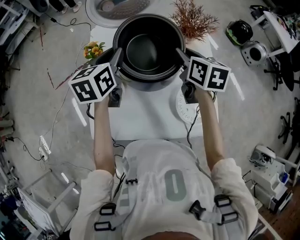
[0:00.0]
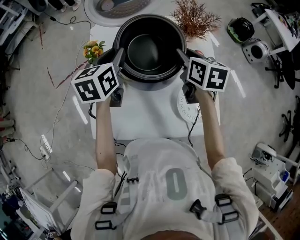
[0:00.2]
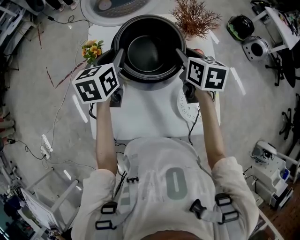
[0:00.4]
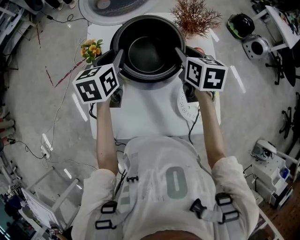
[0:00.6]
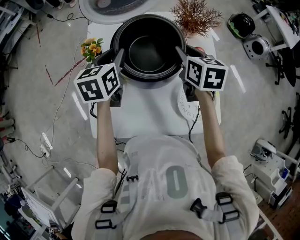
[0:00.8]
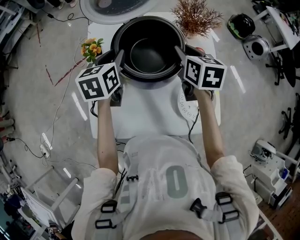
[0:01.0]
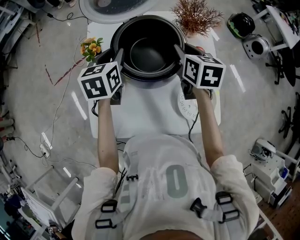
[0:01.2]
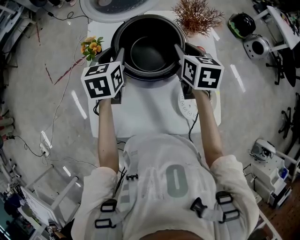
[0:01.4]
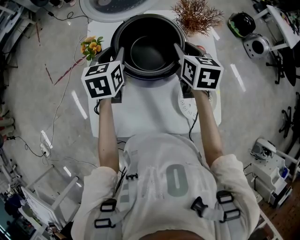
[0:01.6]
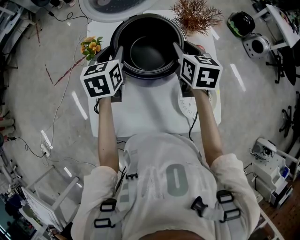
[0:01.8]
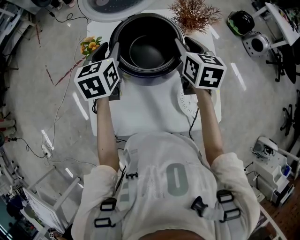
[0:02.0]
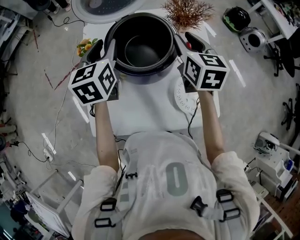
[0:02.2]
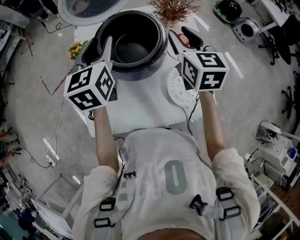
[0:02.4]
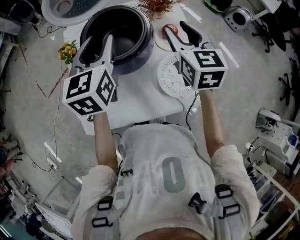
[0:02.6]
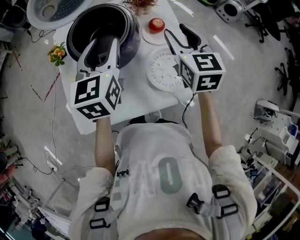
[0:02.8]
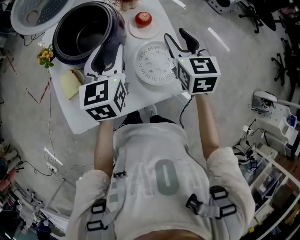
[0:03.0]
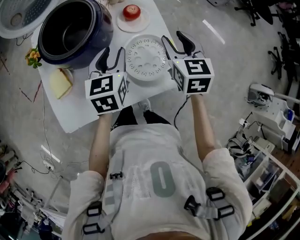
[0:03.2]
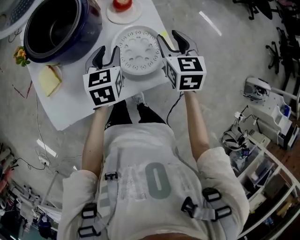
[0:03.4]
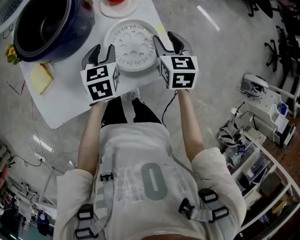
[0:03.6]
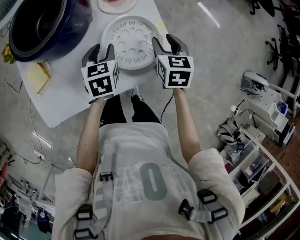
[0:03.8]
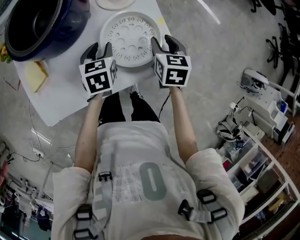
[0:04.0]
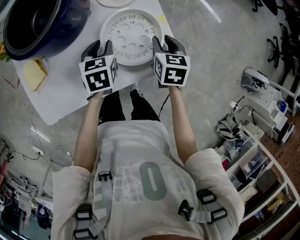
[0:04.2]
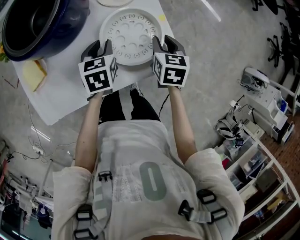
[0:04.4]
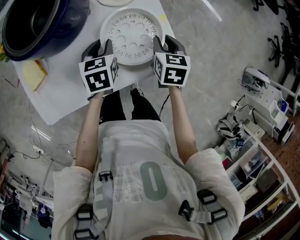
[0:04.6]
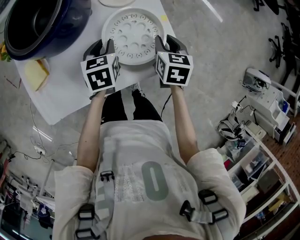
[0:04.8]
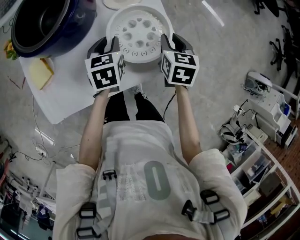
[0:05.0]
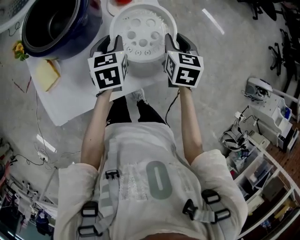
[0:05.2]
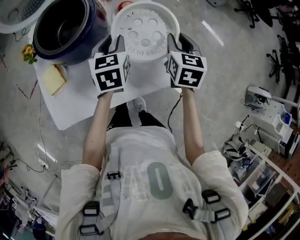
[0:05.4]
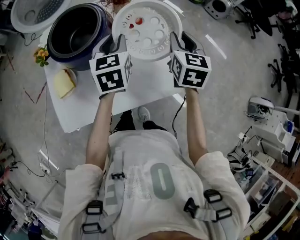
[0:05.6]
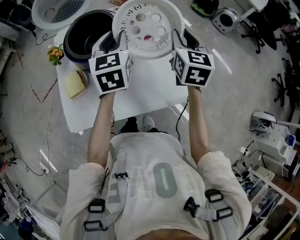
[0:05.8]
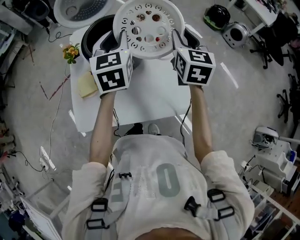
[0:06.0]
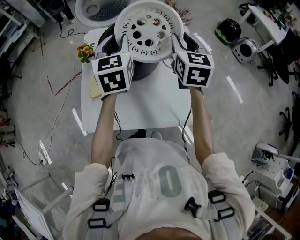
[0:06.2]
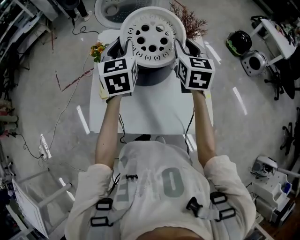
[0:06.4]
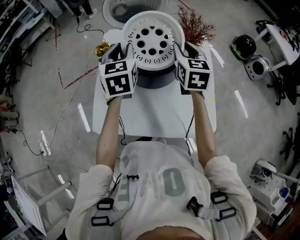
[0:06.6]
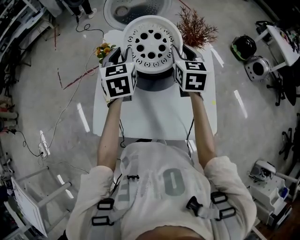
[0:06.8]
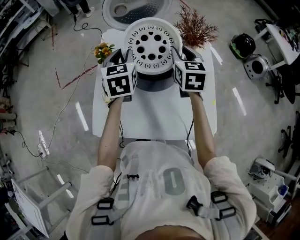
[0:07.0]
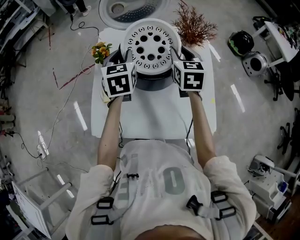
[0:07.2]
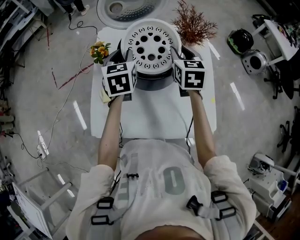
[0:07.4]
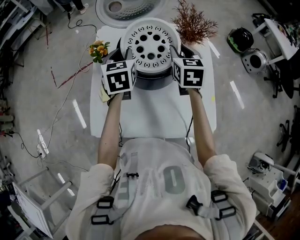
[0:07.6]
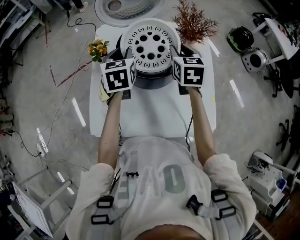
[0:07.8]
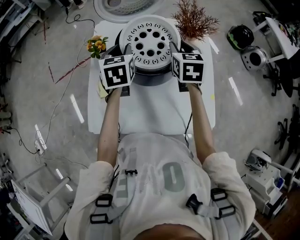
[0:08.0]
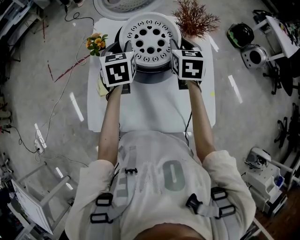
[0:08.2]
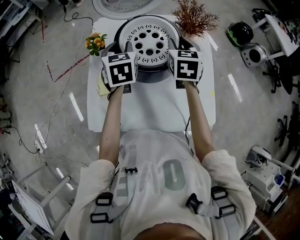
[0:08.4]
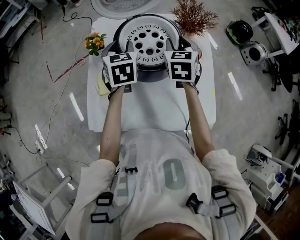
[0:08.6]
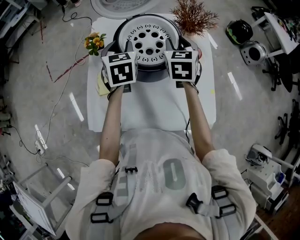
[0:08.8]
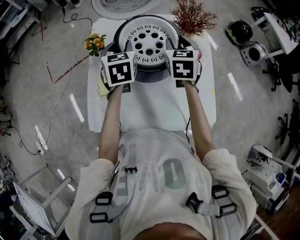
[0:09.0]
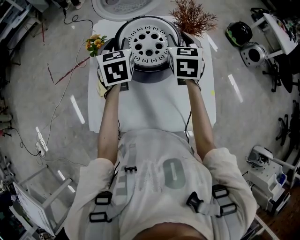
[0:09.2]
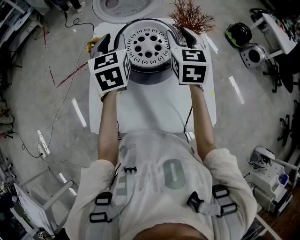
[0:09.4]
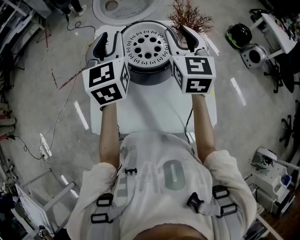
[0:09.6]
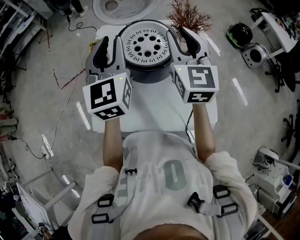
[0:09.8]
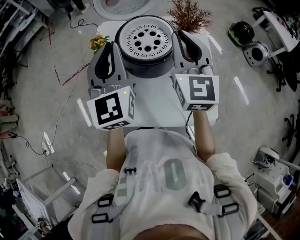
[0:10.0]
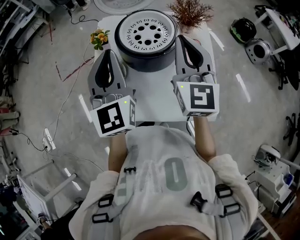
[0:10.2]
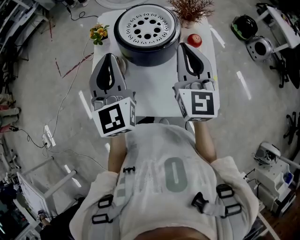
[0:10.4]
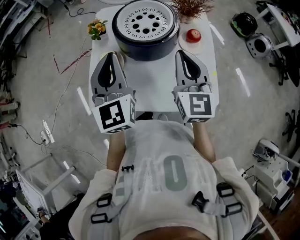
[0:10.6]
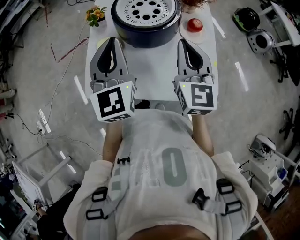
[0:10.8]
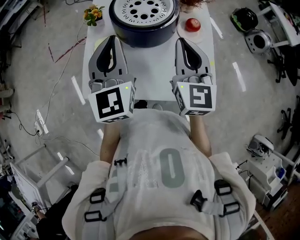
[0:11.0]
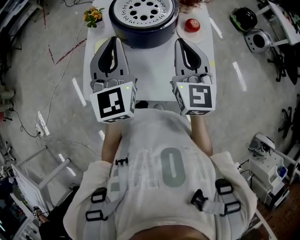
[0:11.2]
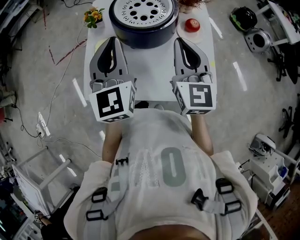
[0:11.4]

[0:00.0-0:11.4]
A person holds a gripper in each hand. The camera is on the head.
0:00.0 to 0:01.4: The left gripper goes roughly 5 cm downward.
0:01.4 to 0:02.8: Both grippers travel together to the right, backward and upward, roughly 20 cm.
0:02.8 to 0:04.2: The grippers both shift downward and to the right by roughly 30 cm. The right gripper rotates approximately 30 degrees. Meanwhile the left gripper tips its fingers downward by about 30 degrees.
0:04.2 to 0:05.6: Both grippers move upward, roughly 20 cm. The right gripper turns by some 20 degrees, while the left gripper swivels some 20 degrees.
0:05.6 to 0:07.2: The left gripper is displaced to the left by some 25 cm, while the right gripper is displaced to the left and forward by about 30 cm, and rotates roughly 20 degrees.
0:07.2 to 0:08.6: The grippers stay close to where they were, moving slightly.
0:08.6 to 0:10.0: The two grippers go some 20 cm upward and backward. The right gripper tips its fingers upward by about 30 degrees, and closes, while the left gripper points its fingers roughly 40 degrees further upward.
0:10.0 to 0:11.4: The grippers both shift backward and downward by approximately 10 cm.

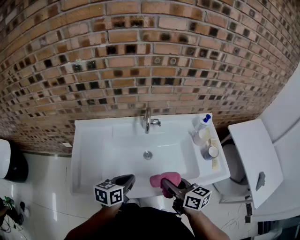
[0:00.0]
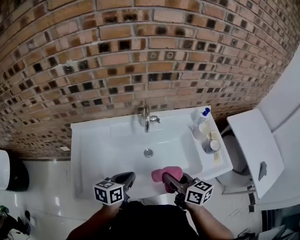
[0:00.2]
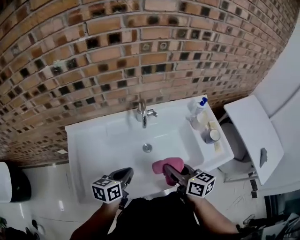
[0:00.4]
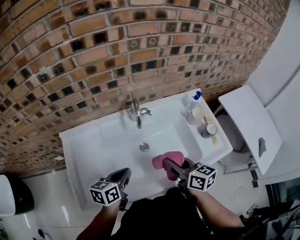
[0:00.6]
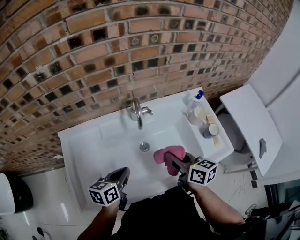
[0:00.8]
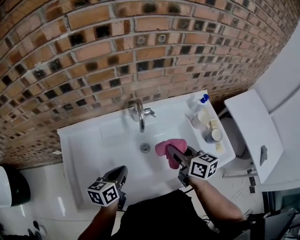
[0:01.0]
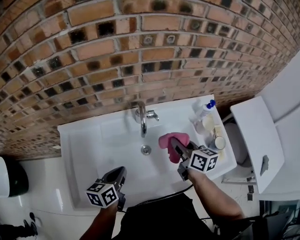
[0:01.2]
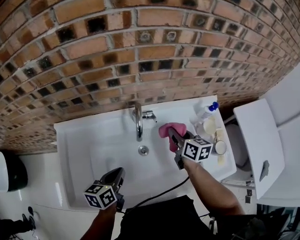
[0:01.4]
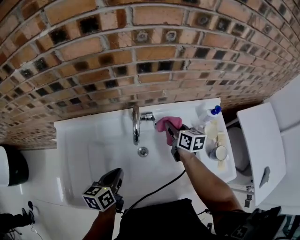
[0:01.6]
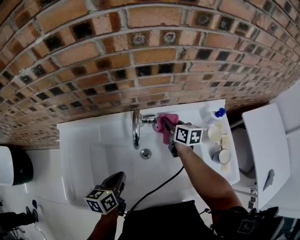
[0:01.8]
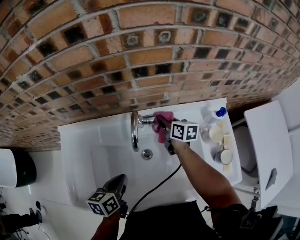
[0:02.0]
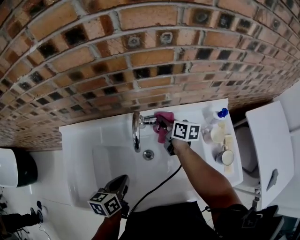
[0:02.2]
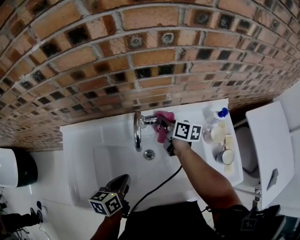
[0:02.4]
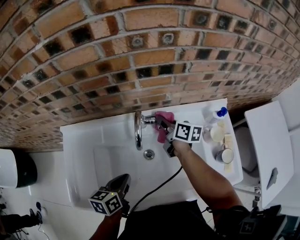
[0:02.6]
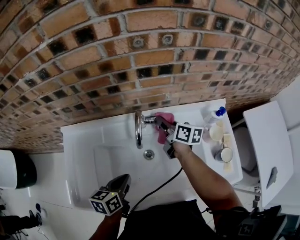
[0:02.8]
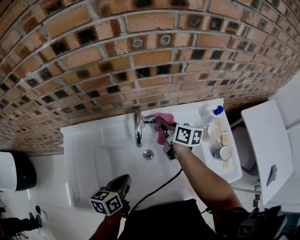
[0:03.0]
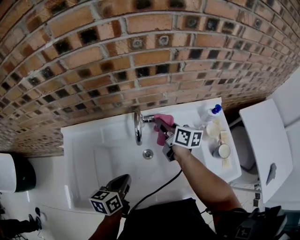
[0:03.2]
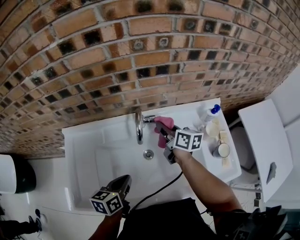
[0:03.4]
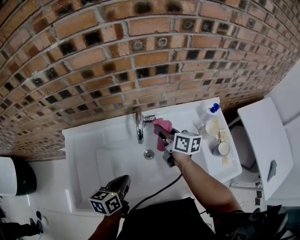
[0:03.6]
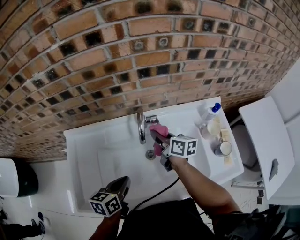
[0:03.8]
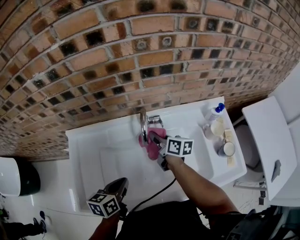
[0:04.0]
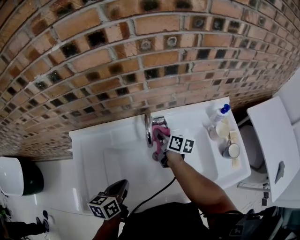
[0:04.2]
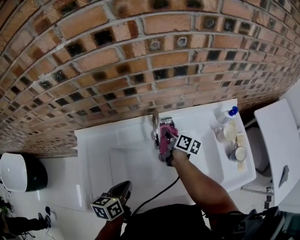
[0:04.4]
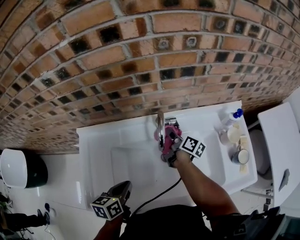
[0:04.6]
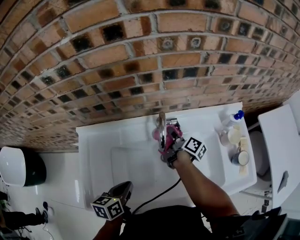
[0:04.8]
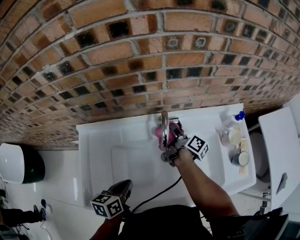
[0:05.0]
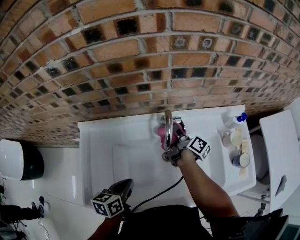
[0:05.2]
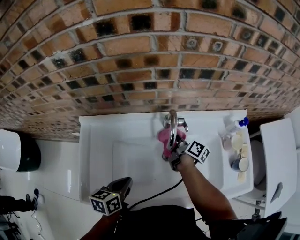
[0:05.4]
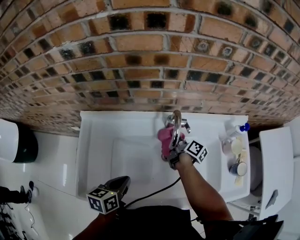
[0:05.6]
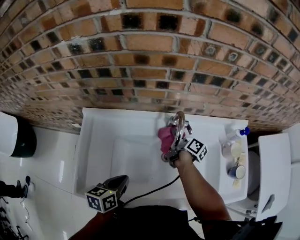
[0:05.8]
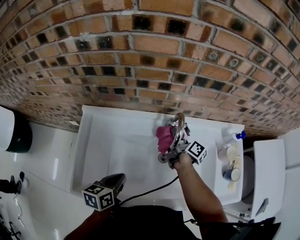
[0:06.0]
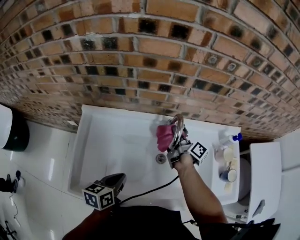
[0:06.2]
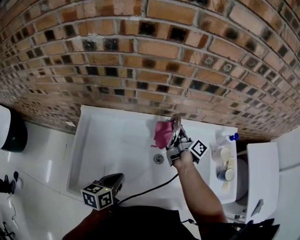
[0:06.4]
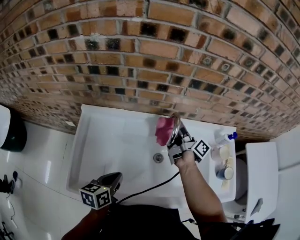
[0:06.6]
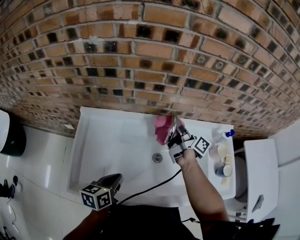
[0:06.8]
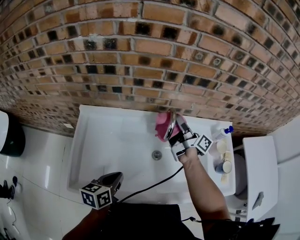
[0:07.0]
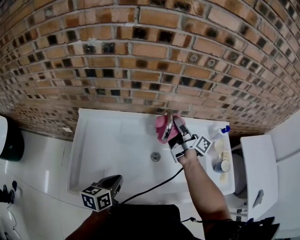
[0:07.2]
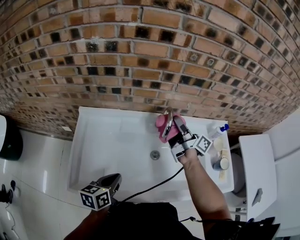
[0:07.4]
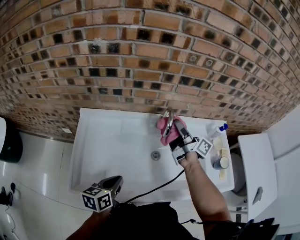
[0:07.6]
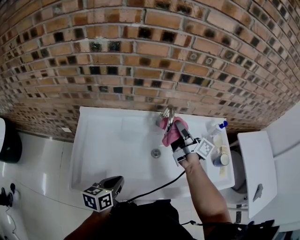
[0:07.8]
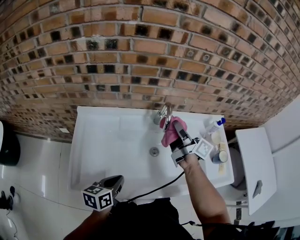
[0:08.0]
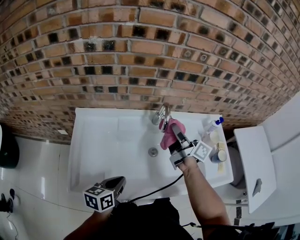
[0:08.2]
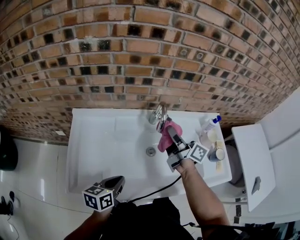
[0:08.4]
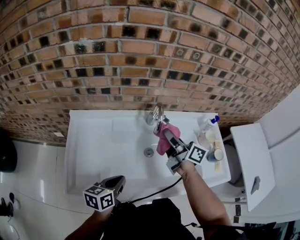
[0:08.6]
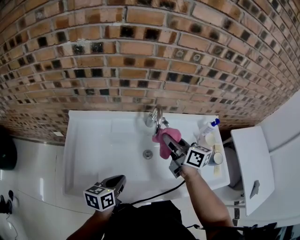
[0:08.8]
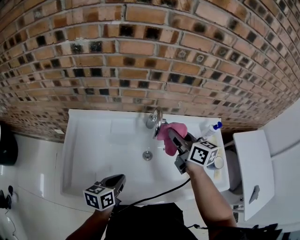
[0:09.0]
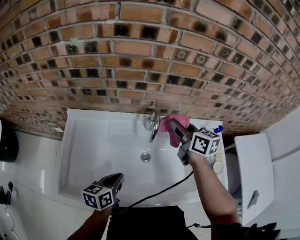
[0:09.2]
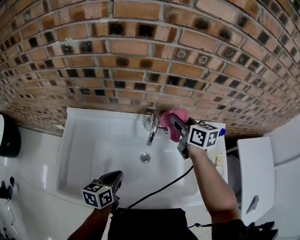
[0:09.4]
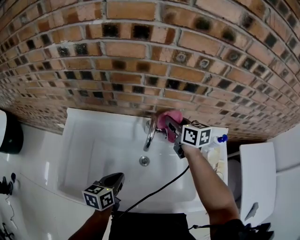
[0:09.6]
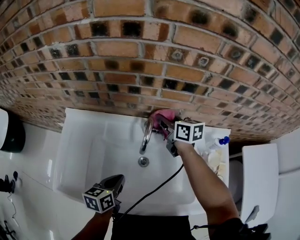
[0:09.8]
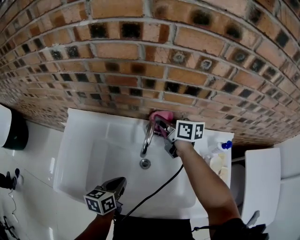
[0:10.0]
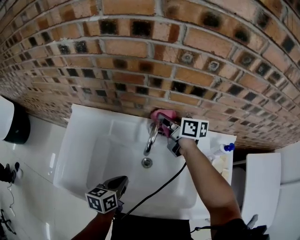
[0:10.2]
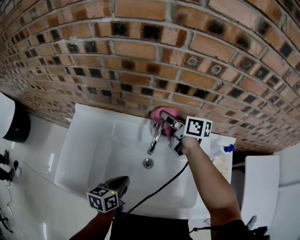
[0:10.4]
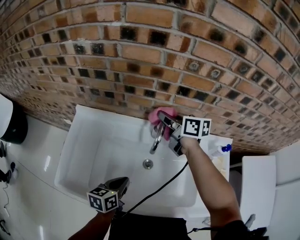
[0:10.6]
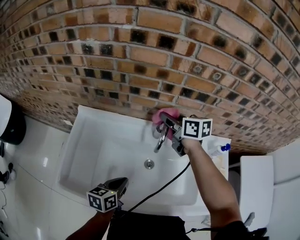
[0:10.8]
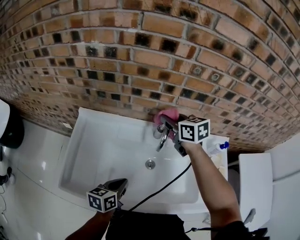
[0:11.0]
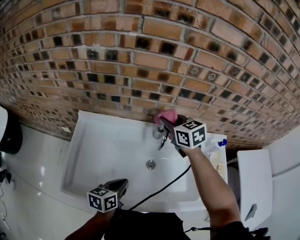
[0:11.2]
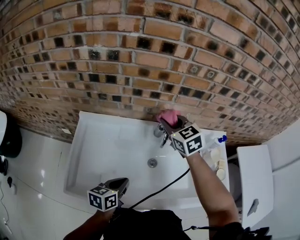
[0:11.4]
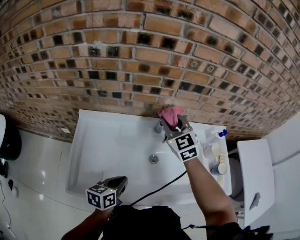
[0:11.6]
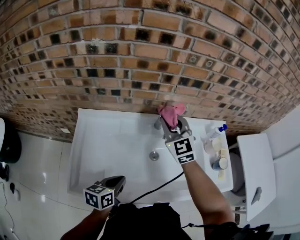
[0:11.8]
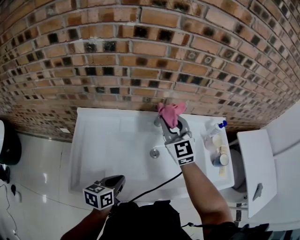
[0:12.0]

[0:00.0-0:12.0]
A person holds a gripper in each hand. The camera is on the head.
0:00.0 to 0:01.6: The right gripper is displaced forward by approximately 35 cm, while the left gripper is displaced forward by some 10 cm.
0:01.6 to 0:03.0: The right gripper goes roughly 5 cm to the left.
0:03.0 to 0:04.4: The right gripper is displaced downward by about 10 cm, while the left gripper heads to the left, covering about 5 cm.
0:04.4 to 0:06.0: The grippers stay close to where they were, moving slightly.
0:06.0 to 0:07.6: The left gripper goes approximately 5 cm backward. The right gripper goes roughly 15 cm upward, and changes its angle by approximately 30 degrees.
0:07.6 to 0:09.0: The left gripper is displaced to the right by roughly 5 cm. Meanwhile the right gripper swivels roughly 50 degrees.
0:09.0 to 0:10.4: The right gripper heads forward, covering some 15 cm, and changes its angle by some 20 degrees; the left gripper shifts approximately 5 cm to the right.
0:10.4 to 0:12.0: The left gripper goes approximately 10 cm to the left and backward. Meanwhile the right gripper shifts approximately 15 cm backward and upward, and twists some 60 degrees counterclockwise, seen from behind.
